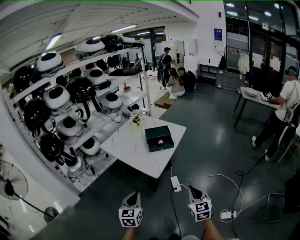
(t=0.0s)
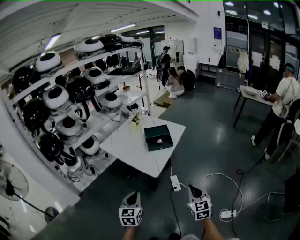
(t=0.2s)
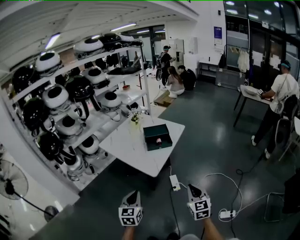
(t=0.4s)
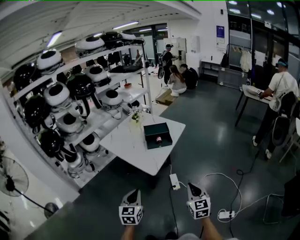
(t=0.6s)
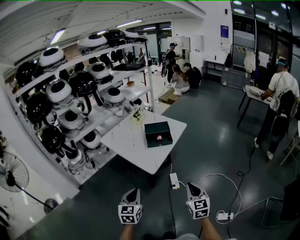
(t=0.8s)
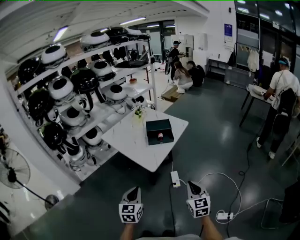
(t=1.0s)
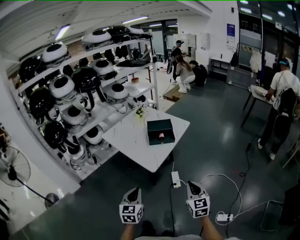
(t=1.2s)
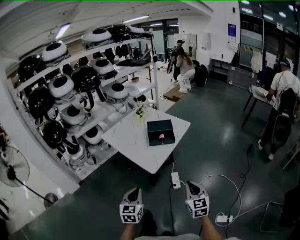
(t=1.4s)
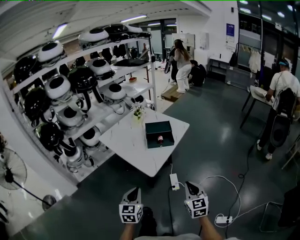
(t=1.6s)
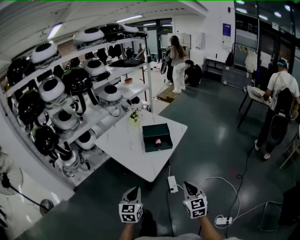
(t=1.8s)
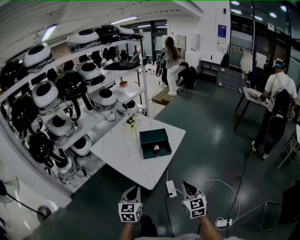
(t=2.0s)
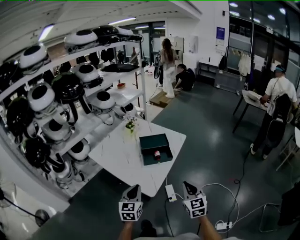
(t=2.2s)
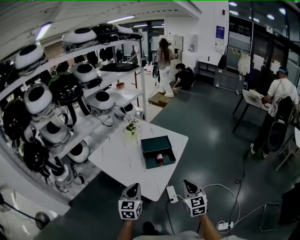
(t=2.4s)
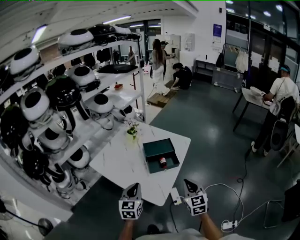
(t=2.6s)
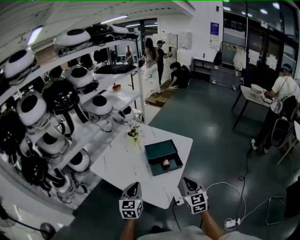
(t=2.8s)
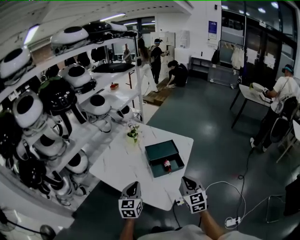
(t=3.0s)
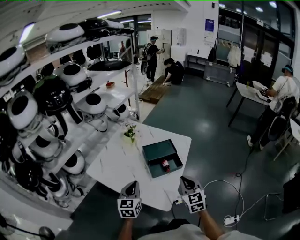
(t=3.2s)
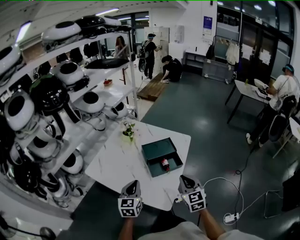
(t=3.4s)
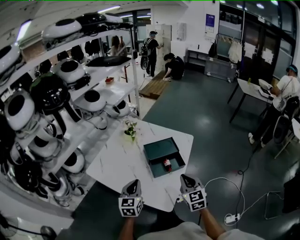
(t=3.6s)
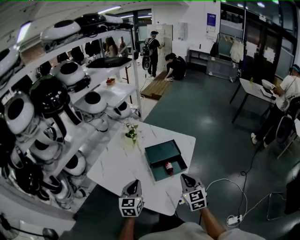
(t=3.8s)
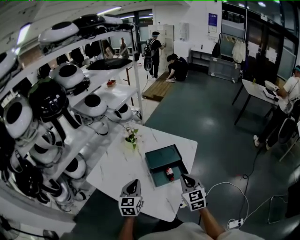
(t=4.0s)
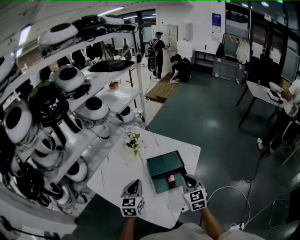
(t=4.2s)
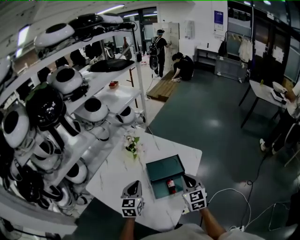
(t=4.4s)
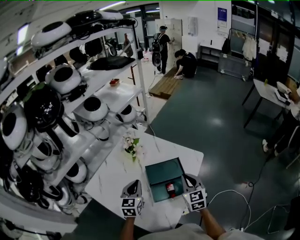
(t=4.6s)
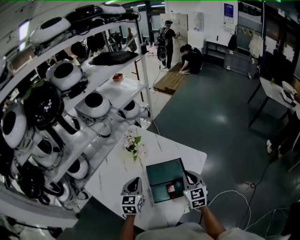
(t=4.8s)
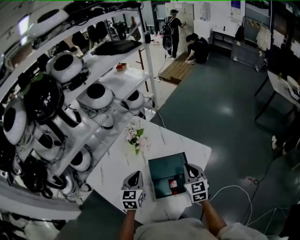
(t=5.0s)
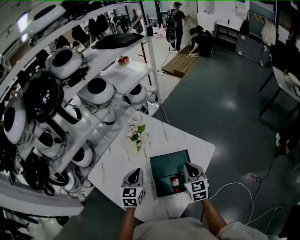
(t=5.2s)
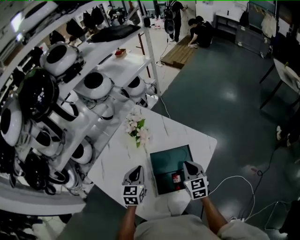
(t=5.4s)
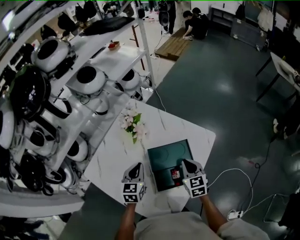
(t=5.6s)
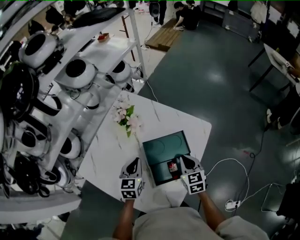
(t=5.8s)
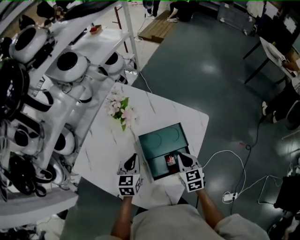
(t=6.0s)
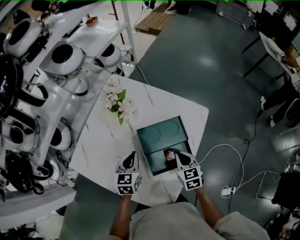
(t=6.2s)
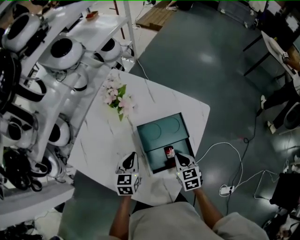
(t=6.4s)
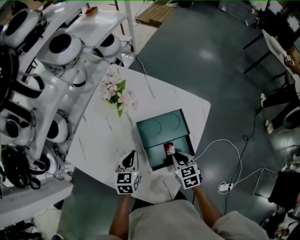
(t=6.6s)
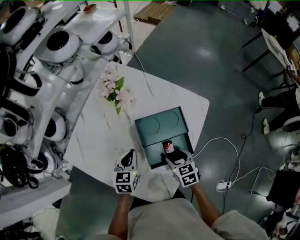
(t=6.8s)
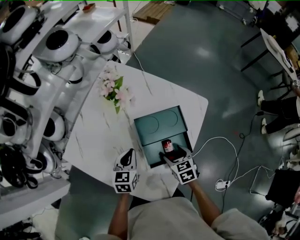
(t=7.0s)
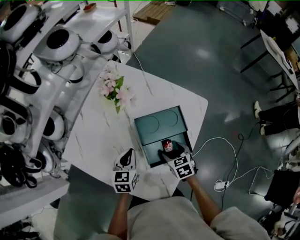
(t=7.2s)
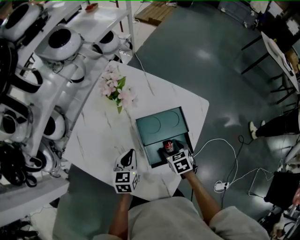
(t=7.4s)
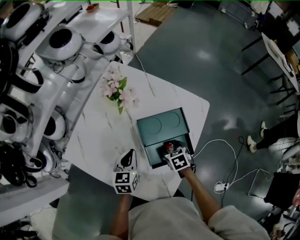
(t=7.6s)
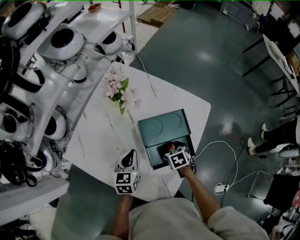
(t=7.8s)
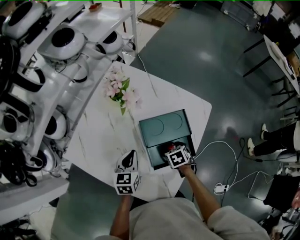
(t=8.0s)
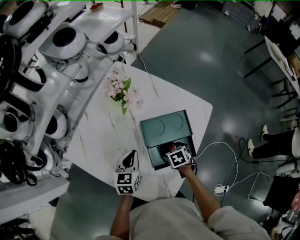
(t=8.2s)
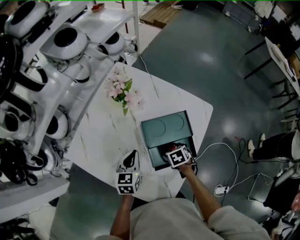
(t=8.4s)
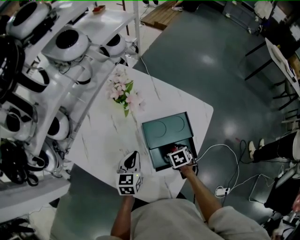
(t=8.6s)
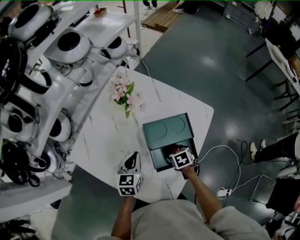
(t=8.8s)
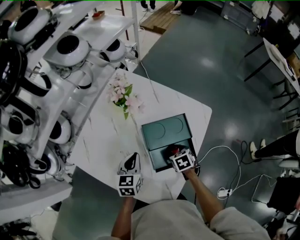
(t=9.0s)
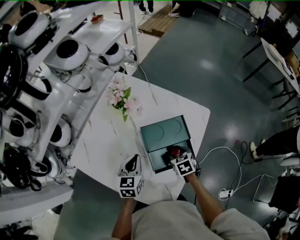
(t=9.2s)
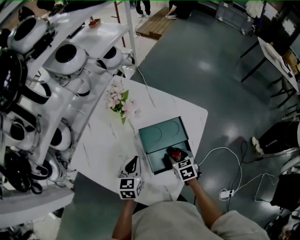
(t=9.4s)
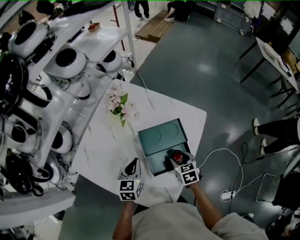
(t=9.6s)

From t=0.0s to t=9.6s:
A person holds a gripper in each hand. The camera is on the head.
From t=0.0s to t=1.6s: The right gripper heads forward, covering about 5 cm. Meanwhile the left gripper goes approximately 5 cm to the right.
From t=1.6s to t=3.2s: The right gripper heads forward and to the left, covering some 35 cm. Meanwhile the left gripper moves forward, approximately 35 cm.
From t=3.2s to t=4.8s: The two grippers go roughly 25 cm forward.
From t=4.8s to t=6.4s: The two grippers go some 15 cm downward. The right gripper turns by about 30 degrees.
From t=6.4s to t=8.0s: The right gripper moves downward, roughly 10 cm, rotates about 30 degrees, and opens its fingers.
From t=8.0s to t=9.6s: The right gripper is displaced upward by approximately 10 cm, and turns by some 20 degrees.

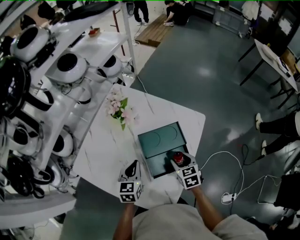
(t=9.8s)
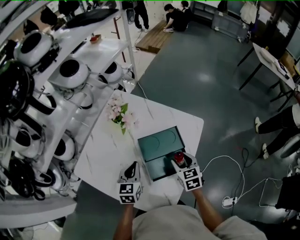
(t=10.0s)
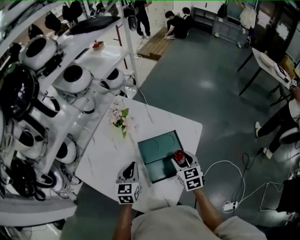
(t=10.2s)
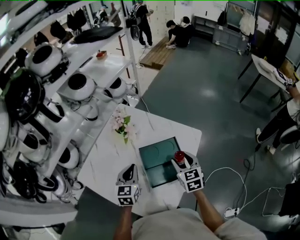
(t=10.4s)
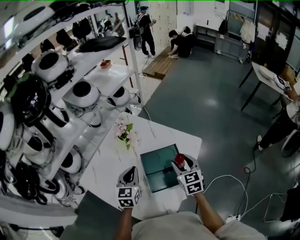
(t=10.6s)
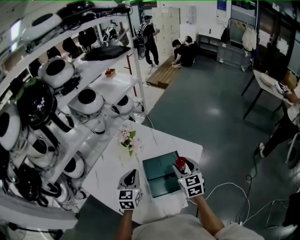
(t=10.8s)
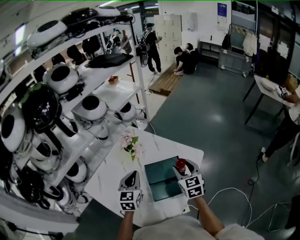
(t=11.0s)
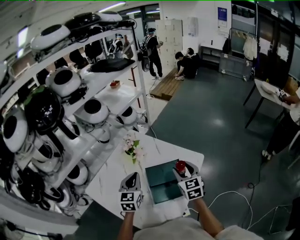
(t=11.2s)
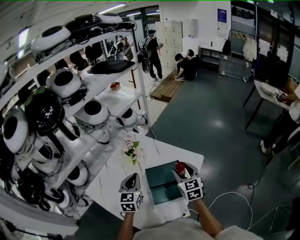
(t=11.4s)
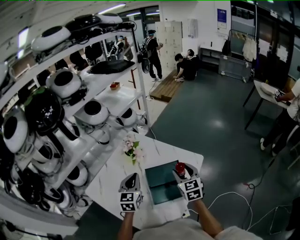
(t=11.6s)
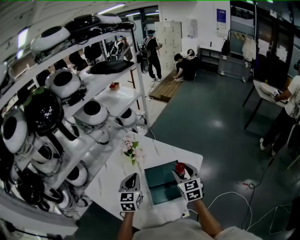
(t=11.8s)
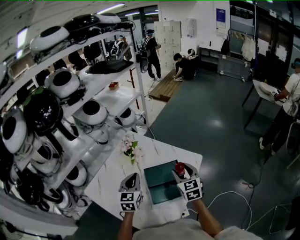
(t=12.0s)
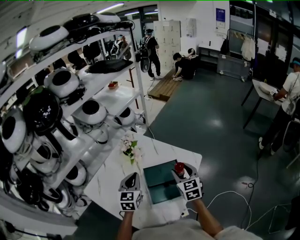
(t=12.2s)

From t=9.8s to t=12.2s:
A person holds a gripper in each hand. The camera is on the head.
From t=9.8s to t=11.0s: The grippers both shift upward by approximately 15 cm. The right gripper changes its angle by some 30 degrees.
From t=11.0s to t=12.2s: Both grippers stay about where they are.

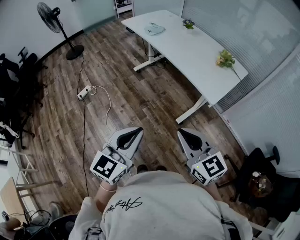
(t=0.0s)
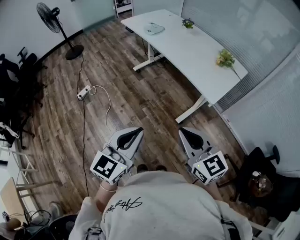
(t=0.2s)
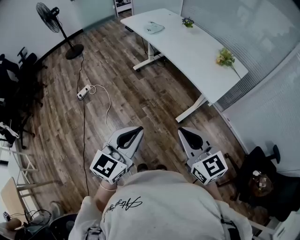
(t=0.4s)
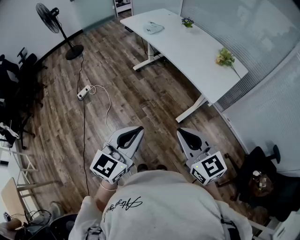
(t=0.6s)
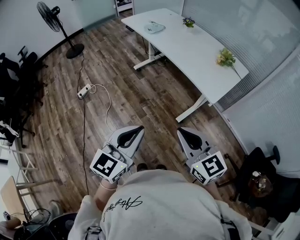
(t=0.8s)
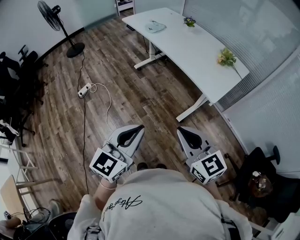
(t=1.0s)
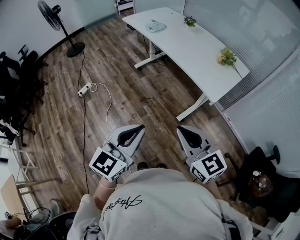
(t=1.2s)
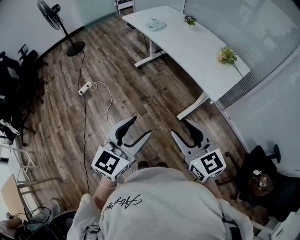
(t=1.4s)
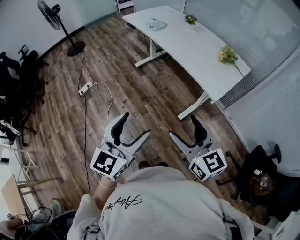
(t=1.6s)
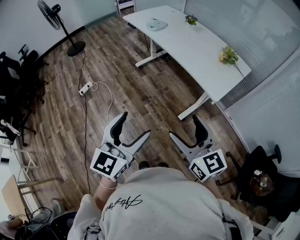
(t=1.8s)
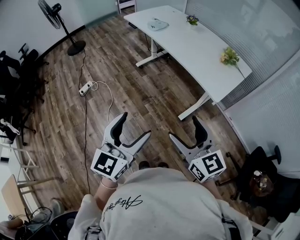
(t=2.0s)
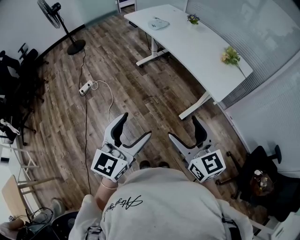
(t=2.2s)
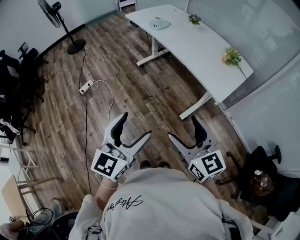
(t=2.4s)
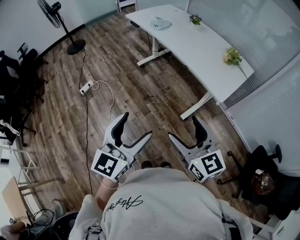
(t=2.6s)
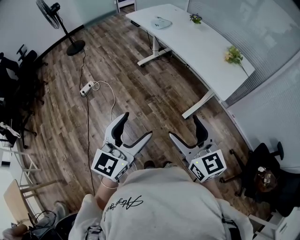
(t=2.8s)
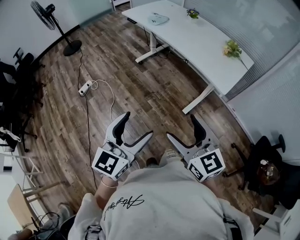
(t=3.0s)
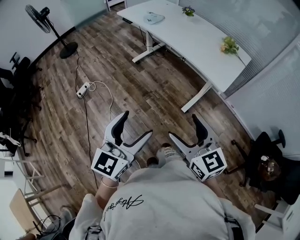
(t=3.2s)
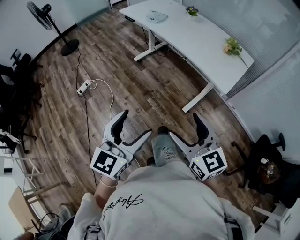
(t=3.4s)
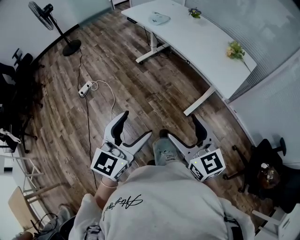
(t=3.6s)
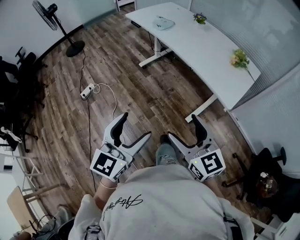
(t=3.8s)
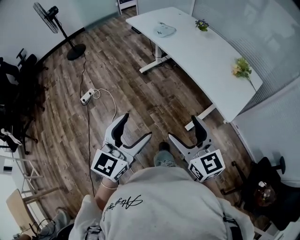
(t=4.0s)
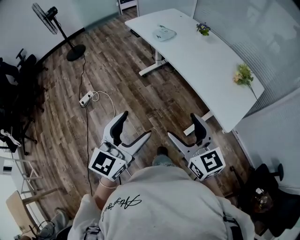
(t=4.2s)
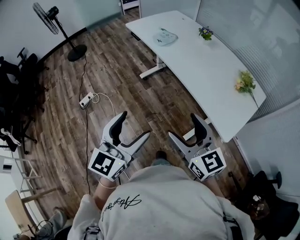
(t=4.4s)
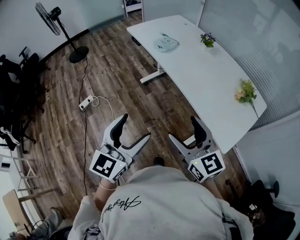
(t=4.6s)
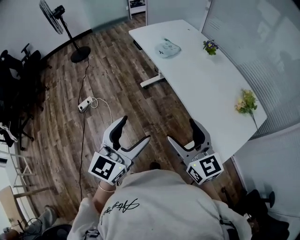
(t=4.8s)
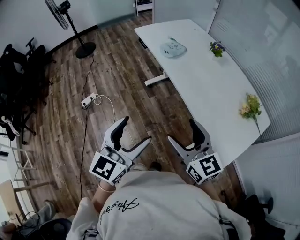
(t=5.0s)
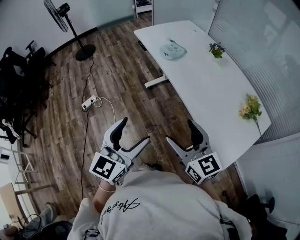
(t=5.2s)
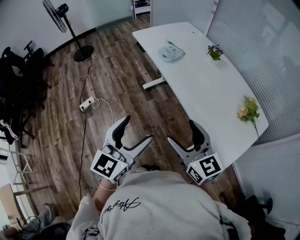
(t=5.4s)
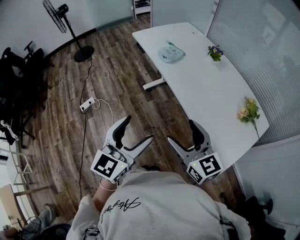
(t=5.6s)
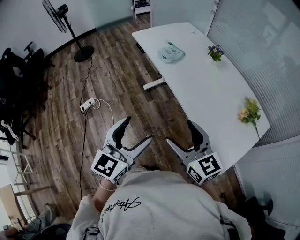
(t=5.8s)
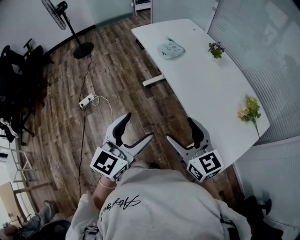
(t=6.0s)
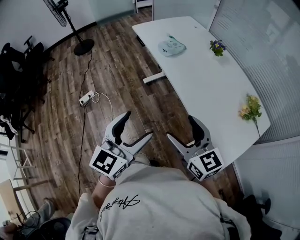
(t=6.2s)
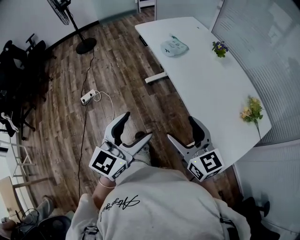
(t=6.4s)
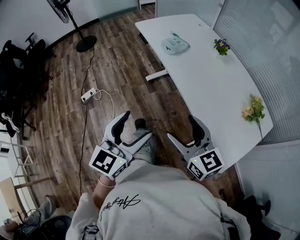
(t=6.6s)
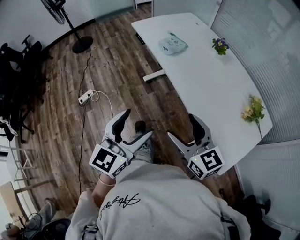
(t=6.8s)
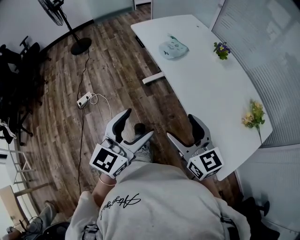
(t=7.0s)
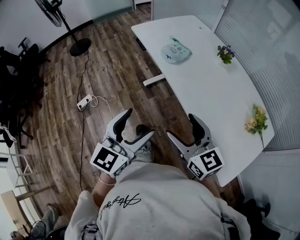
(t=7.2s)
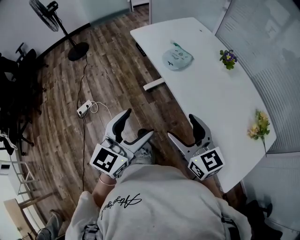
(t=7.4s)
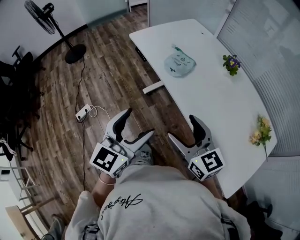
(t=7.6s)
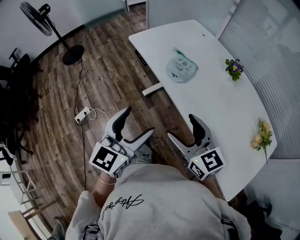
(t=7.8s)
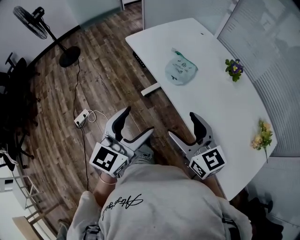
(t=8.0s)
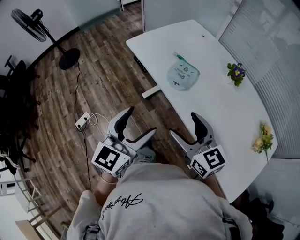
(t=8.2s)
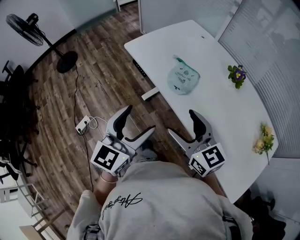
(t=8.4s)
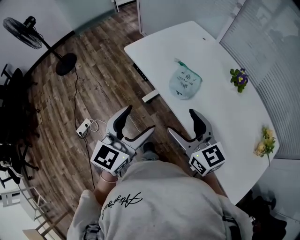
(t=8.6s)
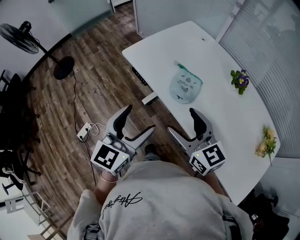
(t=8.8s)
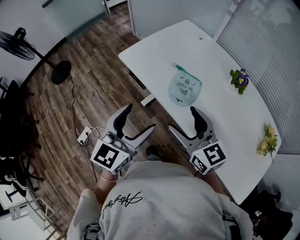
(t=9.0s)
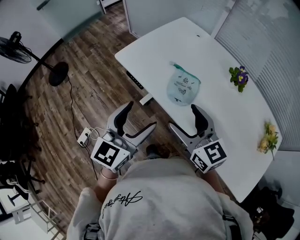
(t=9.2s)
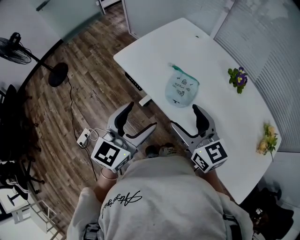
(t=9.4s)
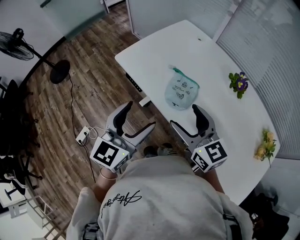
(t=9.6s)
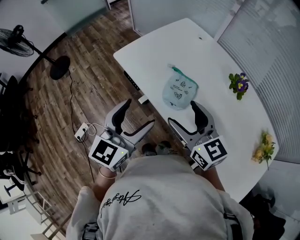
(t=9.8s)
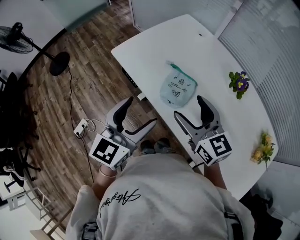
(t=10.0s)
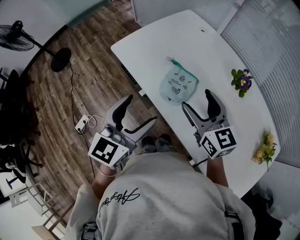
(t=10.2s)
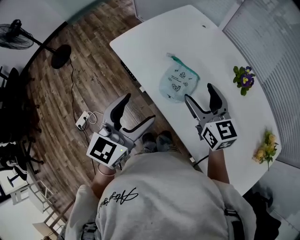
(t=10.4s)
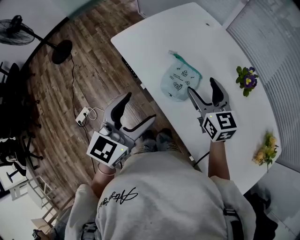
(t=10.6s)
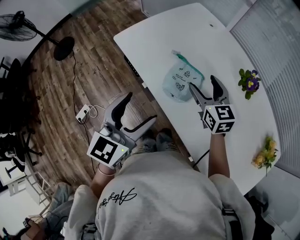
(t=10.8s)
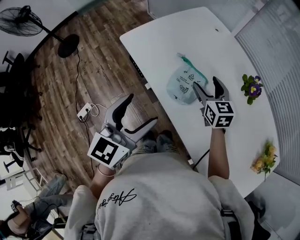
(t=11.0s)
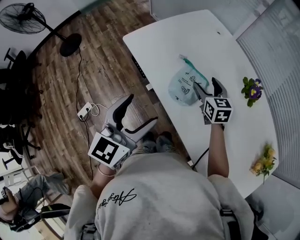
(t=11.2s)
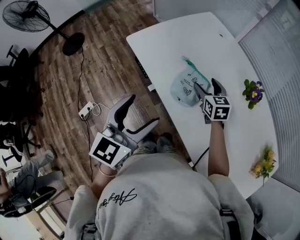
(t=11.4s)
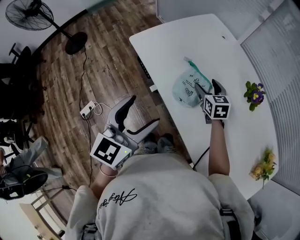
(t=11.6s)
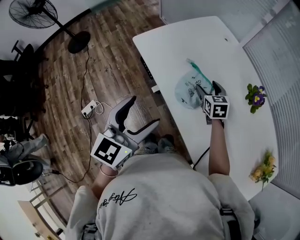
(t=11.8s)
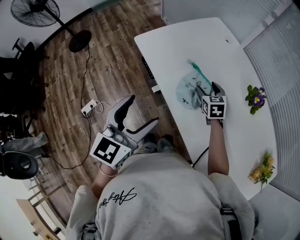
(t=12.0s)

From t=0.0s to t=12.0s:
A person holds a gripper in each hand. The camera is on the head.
From t=0.0s to t=1.6s: The left gripper opens its fingers; the right gripper opens up.
From t=1.6s to t=3.0s: Both grippers travel together to the left, approximately 5 cm.
From t=3.0s to t=4.4s: The two grippers go approximately 25 cm forward.
From t=4.4s to t=6.0s: The grippers both shift forward by some 10 cm.
From t=6.0s to t=7.6s: The two grippers go about 20 cm forward.
From t=7.6s to t=9.0s: The two grippers go some 20 cm forward.
From t=9.0s to t=10.4s: The right gripper heads forward and to the right, covering approximately 15 cm, while the left gripper heads to the right, covering about 5 cm.
From t=10.4s to t=12.0s: The right gripper shifts about 20 cm downward and forward, and swivels about 30 degrees.
